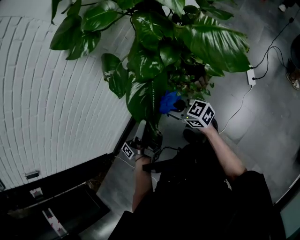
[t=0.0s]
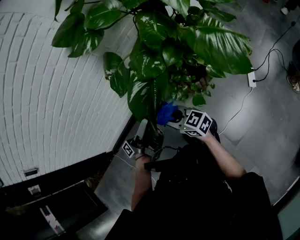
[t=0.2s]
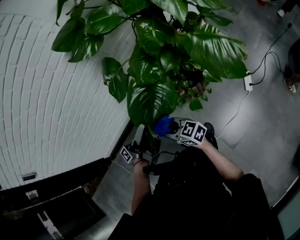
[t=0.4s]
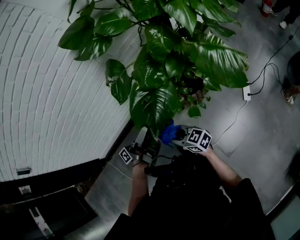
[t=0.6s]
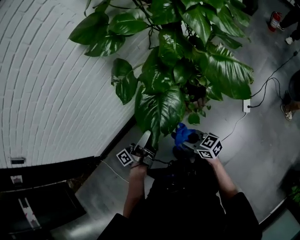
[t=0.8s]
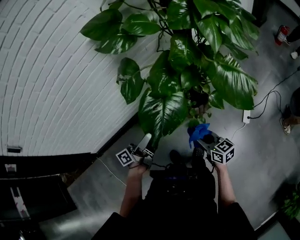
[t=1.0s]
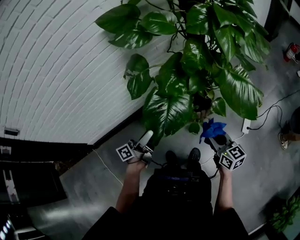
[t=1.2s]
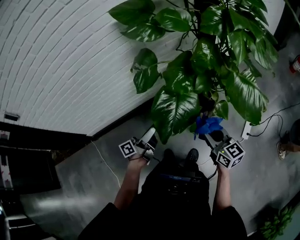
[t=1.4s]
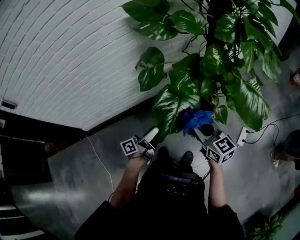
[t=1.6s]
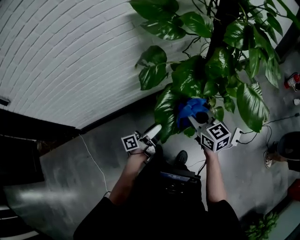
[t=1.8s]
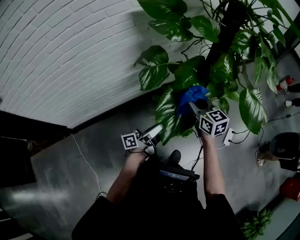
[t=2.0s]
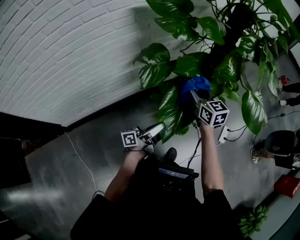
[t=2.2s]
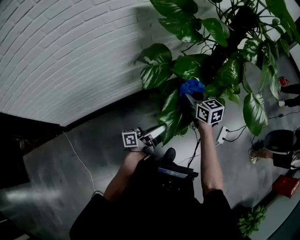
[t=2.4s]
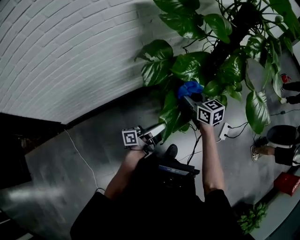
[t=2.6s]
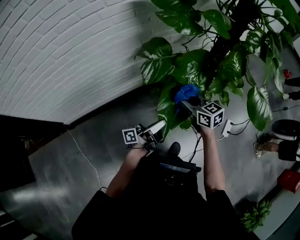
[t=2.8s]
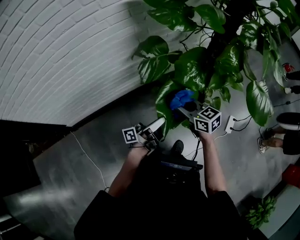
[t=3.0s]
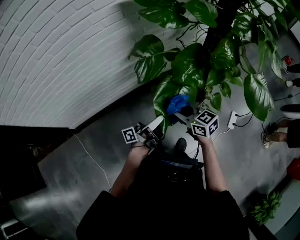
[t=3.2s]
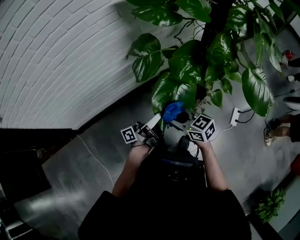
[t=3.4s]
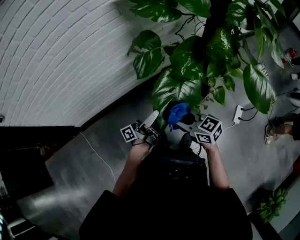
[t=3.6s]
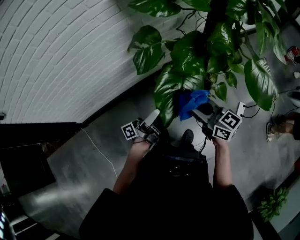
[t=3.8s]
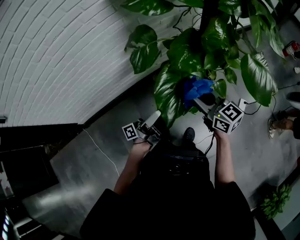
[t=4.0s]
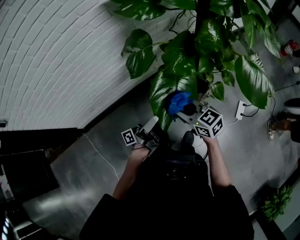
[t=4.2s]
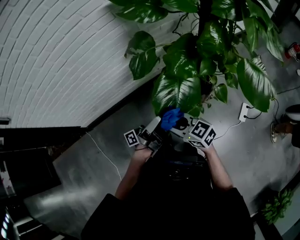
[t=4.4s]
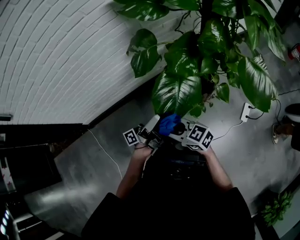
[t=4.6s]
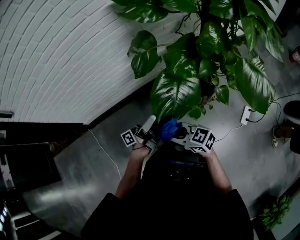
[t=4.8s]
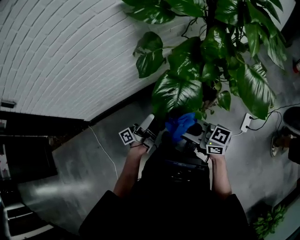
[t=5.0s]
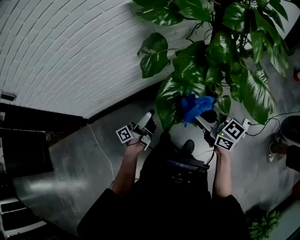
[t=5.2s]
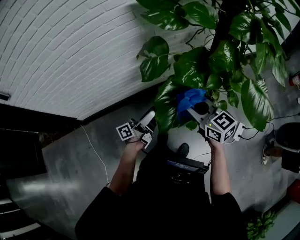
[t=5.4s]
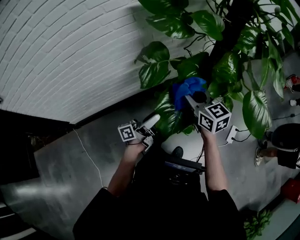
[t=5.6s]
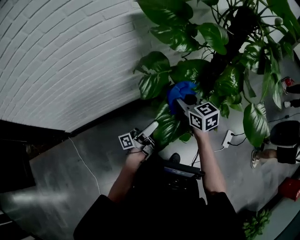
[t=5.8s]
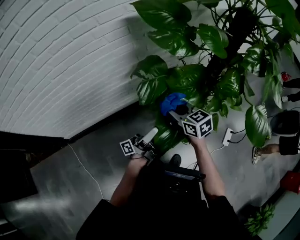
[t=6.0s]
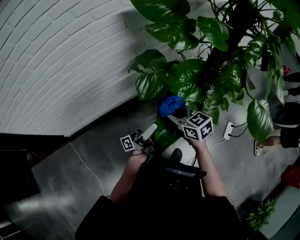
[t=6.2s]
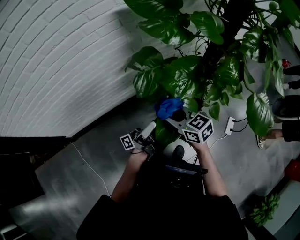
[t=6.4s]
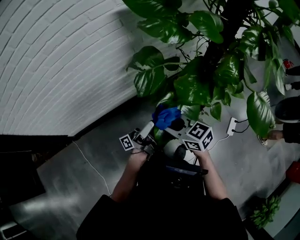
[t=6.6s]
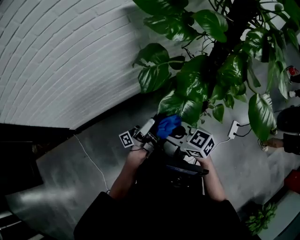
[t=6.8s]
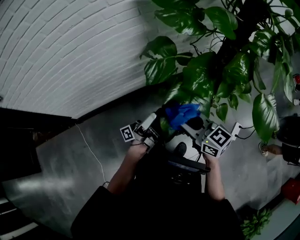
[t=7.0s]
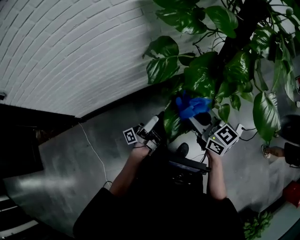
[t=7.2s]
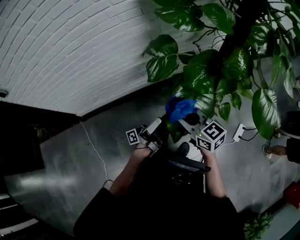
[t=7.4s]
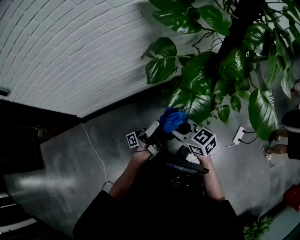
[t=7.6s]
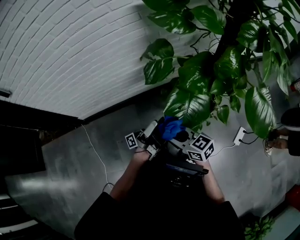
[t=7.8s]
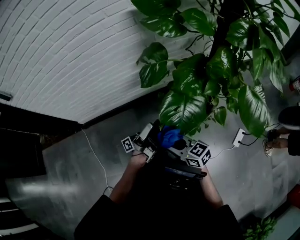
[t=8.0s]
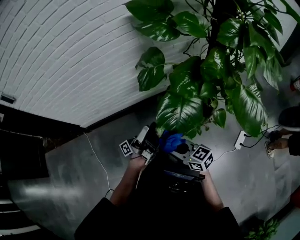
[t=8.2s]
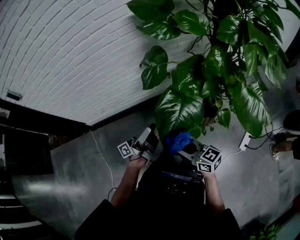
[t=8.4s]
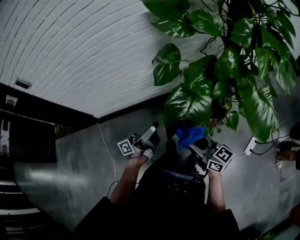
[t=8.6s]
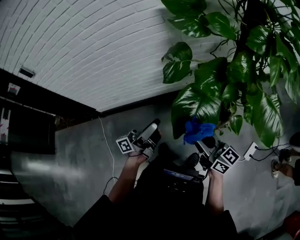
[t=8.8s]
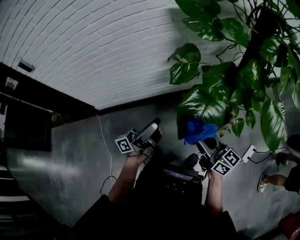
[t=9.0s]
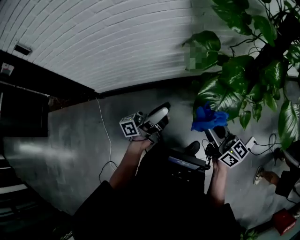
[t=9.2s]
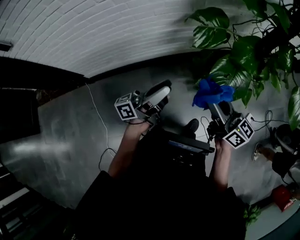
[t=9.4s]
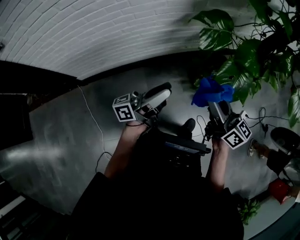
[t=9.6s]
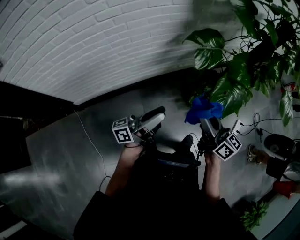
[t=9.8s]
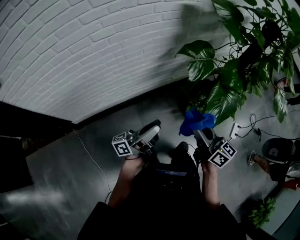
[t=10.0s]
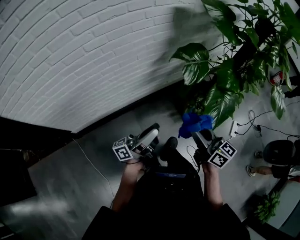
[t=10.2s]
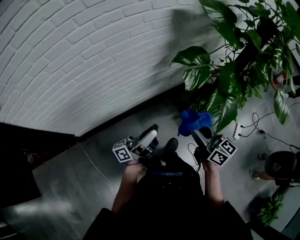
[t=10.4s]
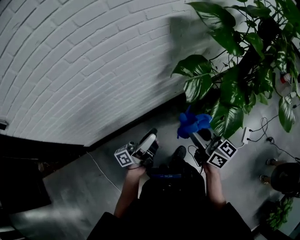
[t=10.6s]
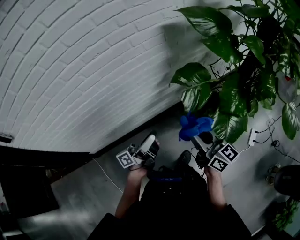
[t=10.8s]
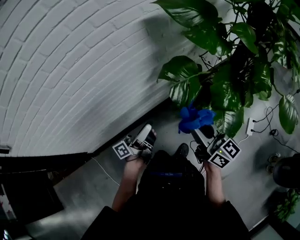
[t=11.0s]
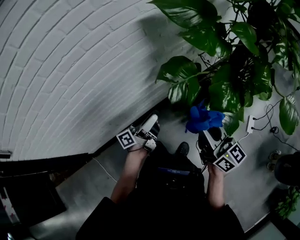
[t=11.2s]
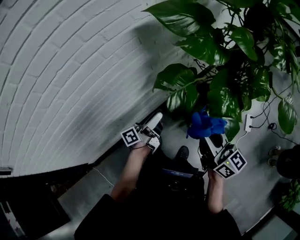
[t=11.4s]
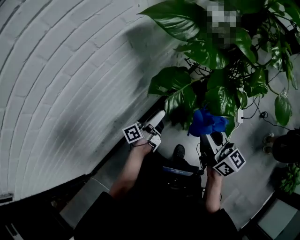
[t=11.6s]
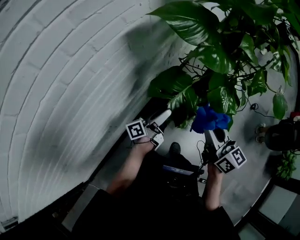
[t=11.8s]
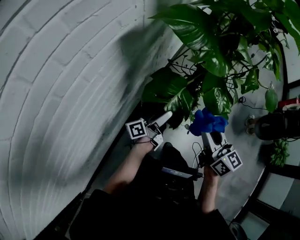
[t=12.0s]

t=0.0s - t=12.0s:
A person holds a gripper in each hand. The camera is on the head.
t=0.0s - t=1.6s: The right gripper heads upward, covering roughly 10 cm.
t=1.6s - t=3.0s: The right gripper ends up approximately 15 cm from where it was.
t=3.0s - t=4.4s: The right gripper ends up approximately 15 cm from where it was.
t=4.4s - t=6.0s: The right gripper travels upward and back again, roughly 10 cm each way, and turns by roughly 20 degrees.
t=6.0s - t=7.6s: The right gripper moves some 5 cm upward and comes back.
t=7.6s - t=9.0s: The right gripper moves upward, some 10 cm, and rotates some 30 degrees.
t=9.0s - t=10.4s: The right gripper moves roughly 25 cm, and rotates roughly 20 degrees.
t=10.4s - t=12.0s: The right gripper shifts by about 20 cm, and rotates about 50 degrees.

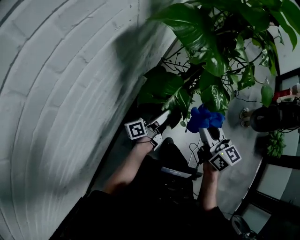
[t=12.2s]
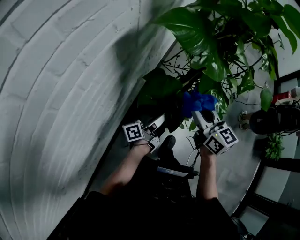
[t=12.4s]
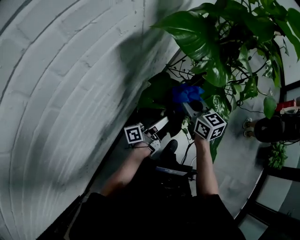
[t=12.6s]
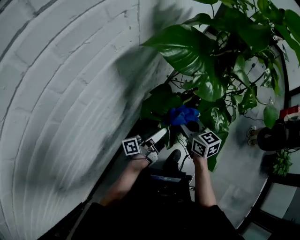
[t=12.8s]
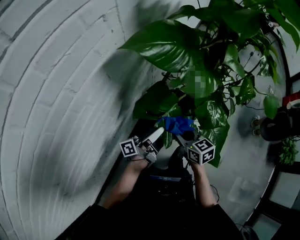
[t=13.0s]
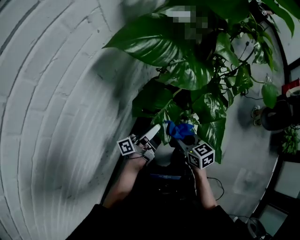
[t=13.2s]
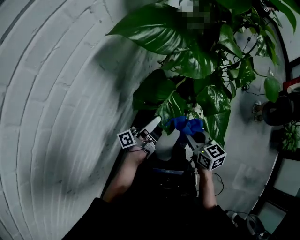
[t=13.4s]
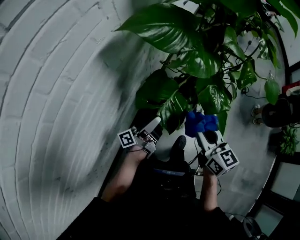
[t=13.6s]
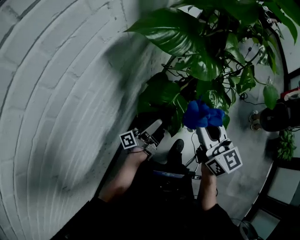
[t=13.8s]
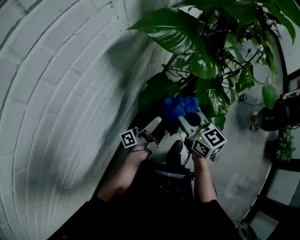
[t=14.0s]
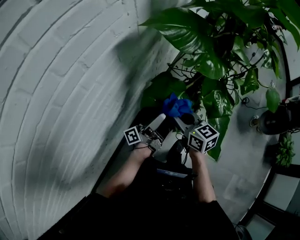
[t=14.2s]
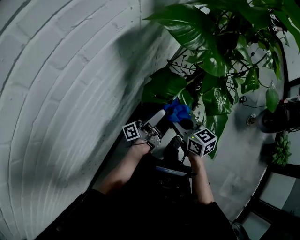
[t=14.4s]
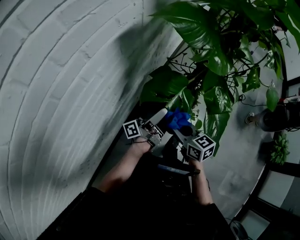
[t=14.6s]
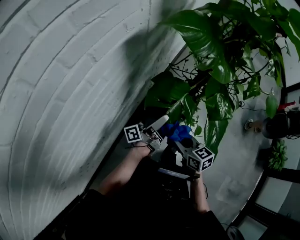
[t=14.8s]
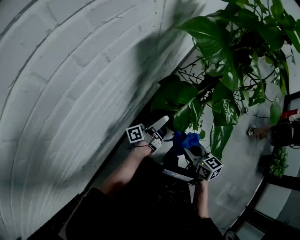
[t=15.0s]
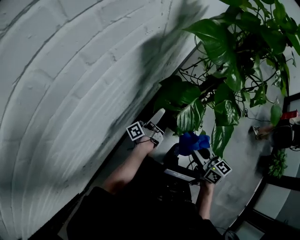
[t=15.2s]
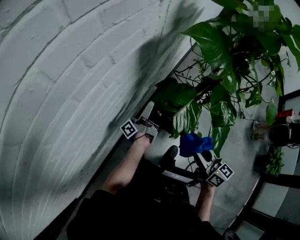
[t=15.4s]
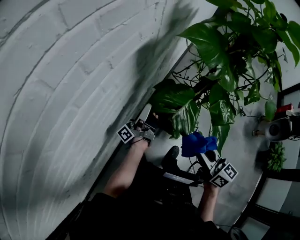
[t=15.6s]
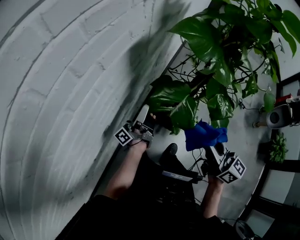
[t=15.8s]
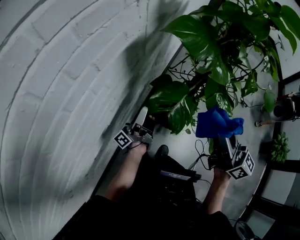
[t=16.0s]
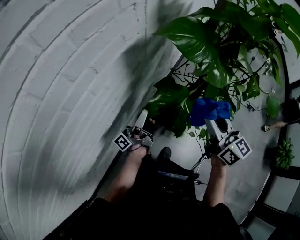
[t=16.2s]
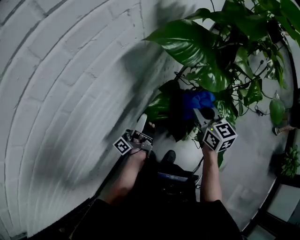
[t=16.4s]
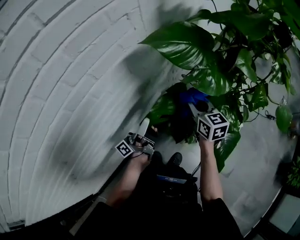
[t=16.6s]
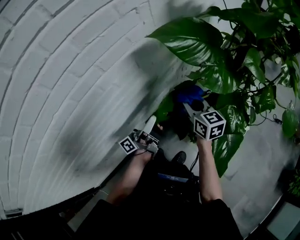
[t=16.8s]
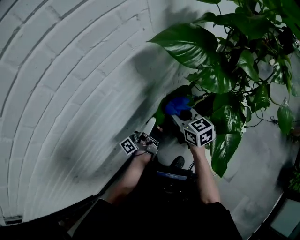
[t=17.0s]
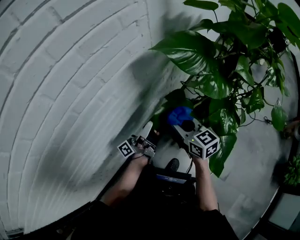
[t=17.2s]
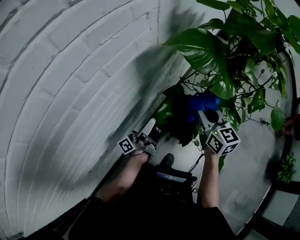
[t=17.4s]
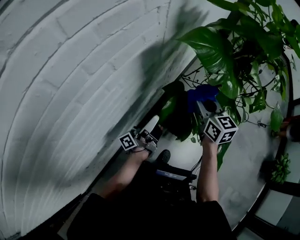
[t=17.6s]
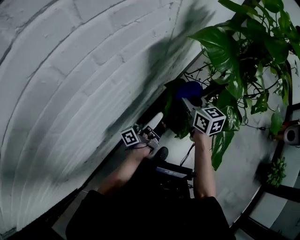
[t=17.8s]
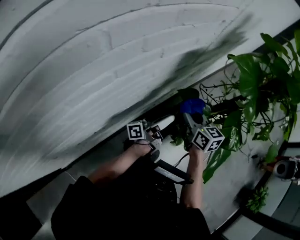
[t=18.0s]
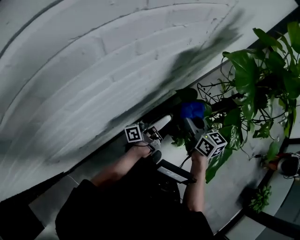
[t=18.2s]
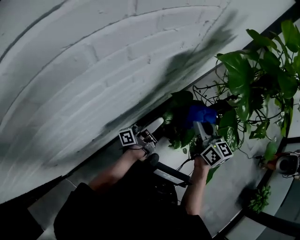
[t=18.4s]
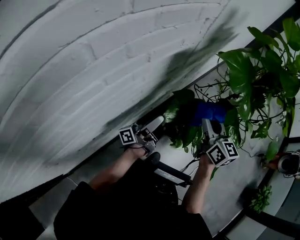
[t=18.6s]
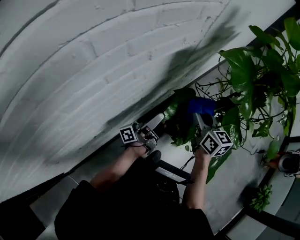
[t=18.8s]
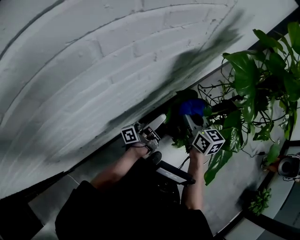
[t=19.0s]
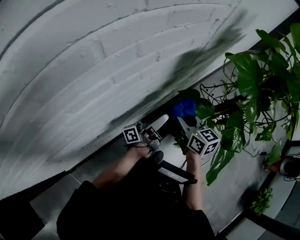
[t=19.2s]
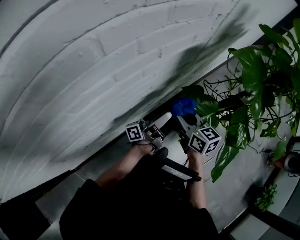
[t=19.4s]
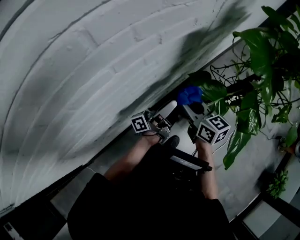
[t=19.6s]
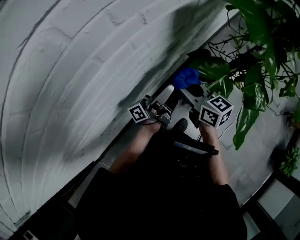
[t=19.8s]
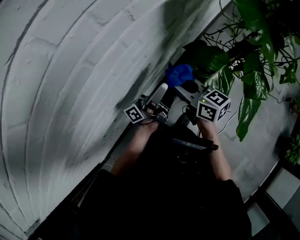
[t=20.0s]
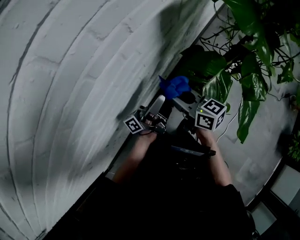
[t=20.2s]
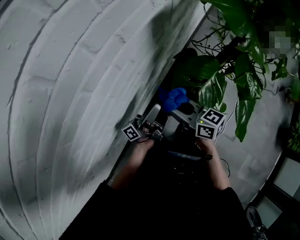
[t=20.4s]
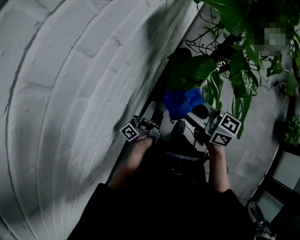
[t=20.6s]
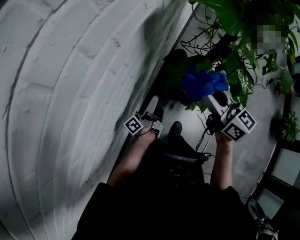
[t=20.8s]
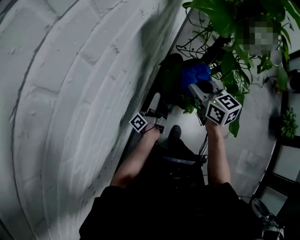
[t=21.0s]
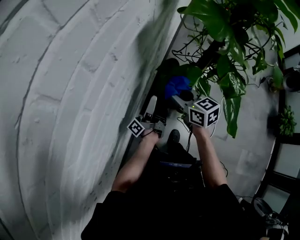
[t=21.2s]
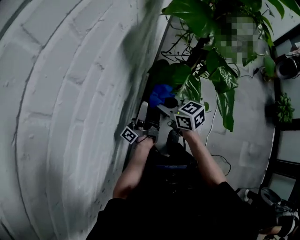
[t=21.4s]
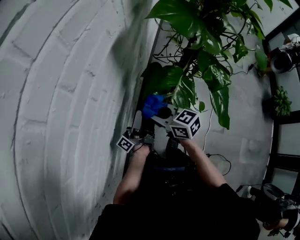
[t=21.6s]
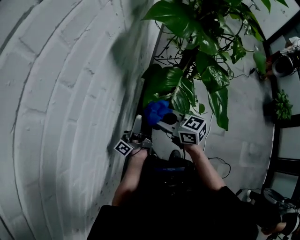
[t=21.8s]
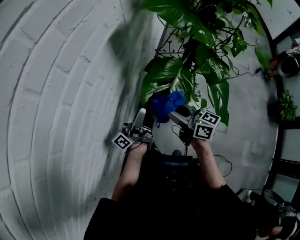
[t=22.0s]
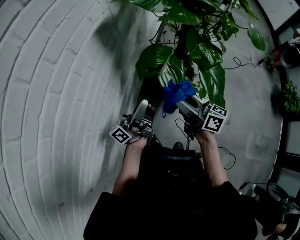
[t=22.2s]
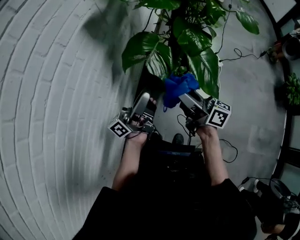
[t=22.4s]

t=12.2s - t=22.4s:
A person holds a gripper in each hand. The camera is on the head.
t=12.2s - t=13.6s: The right gripper reaches some 15 cm downward, then returns.
t=13.6s - t=15.2s: The right gripper swings up and down, approximately 20 cm each way, with 2 reversals.
t=15.2s - t=16.6s: The right gripper travels upward and back again, about 20 cm each way.
t=16.6s - t=18.0s: The right gripper travels upward and back again, roughly 5 cm each way.
t=18.0s - t=19.4s: The right gripper travels upward and back again, approximately 10 cm each way.
t=19.4s - t=21.0s: The right gripper travels upward and back again, some 10 cm each way, and rotates about 30 degrees.
t=21.0s - t=22.4s: The right gripper goes downward and returns, some 10 cm each way, and changes its angle by approximately 50 degrees.

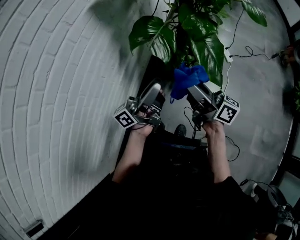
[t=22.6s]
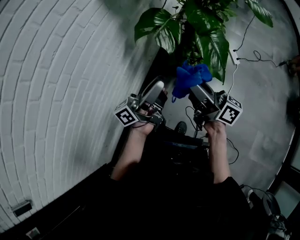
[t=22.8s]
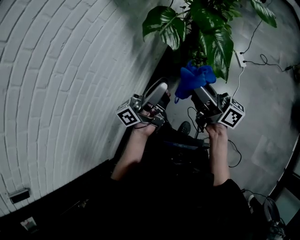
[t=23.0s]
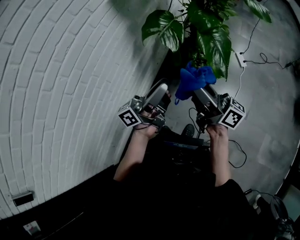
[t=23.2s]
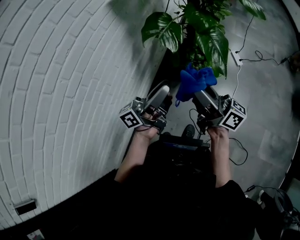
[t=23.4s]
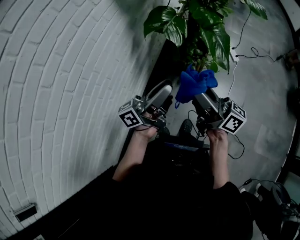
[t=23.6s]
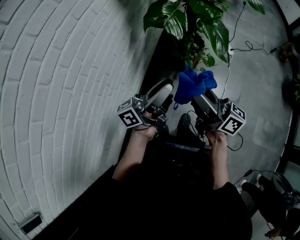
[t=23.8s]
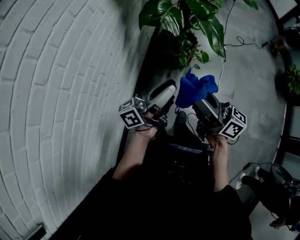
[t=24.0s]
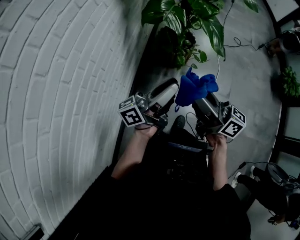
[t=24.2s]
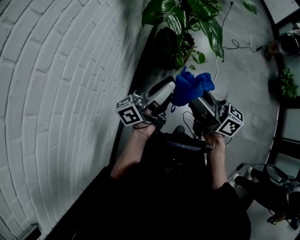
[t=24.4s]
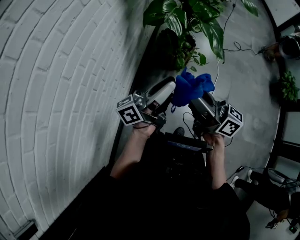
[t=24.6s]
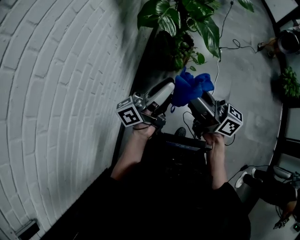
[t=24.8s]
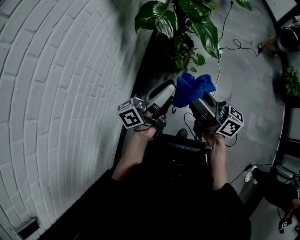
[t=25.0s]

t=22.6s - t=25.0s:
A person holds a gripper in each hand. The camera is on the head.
t=22.6s - t=23.8s: The right gripper shifts by approximately 20 cm.
t=23.8s - t=25.0s: The right gripper moves roughly 5 cm.
